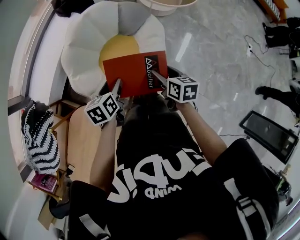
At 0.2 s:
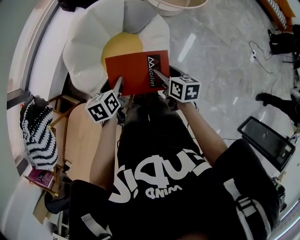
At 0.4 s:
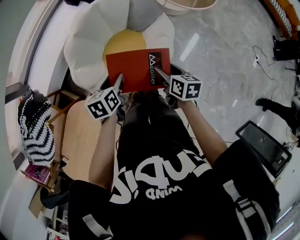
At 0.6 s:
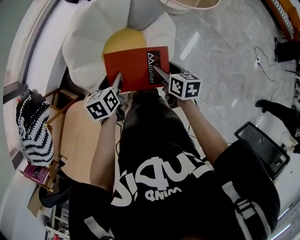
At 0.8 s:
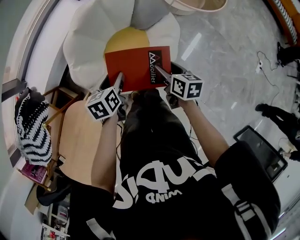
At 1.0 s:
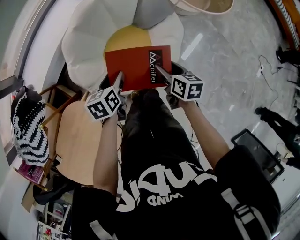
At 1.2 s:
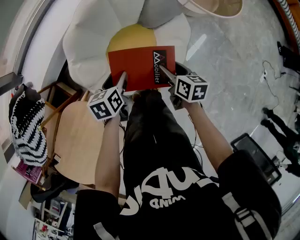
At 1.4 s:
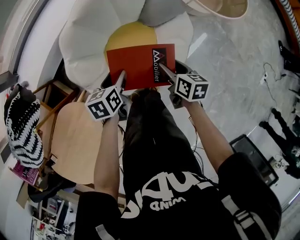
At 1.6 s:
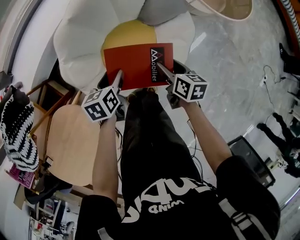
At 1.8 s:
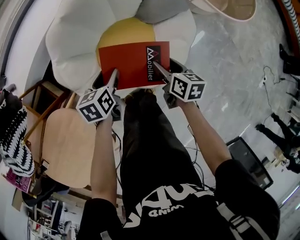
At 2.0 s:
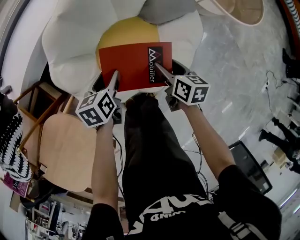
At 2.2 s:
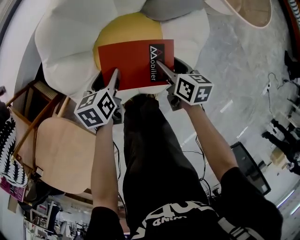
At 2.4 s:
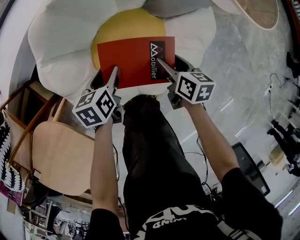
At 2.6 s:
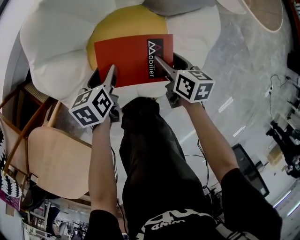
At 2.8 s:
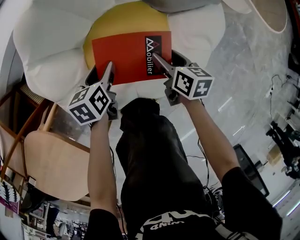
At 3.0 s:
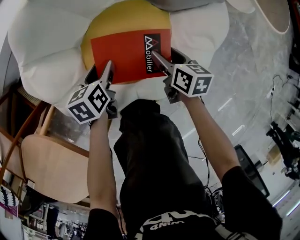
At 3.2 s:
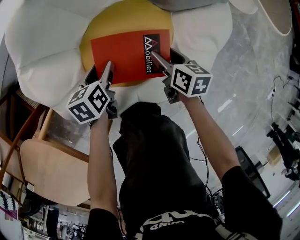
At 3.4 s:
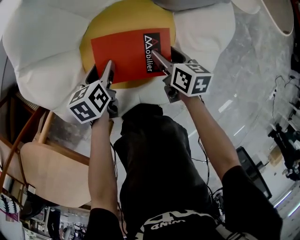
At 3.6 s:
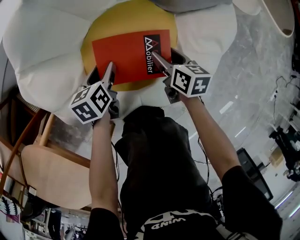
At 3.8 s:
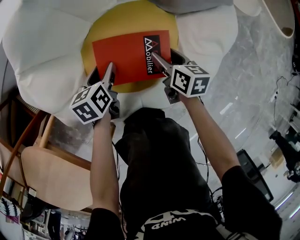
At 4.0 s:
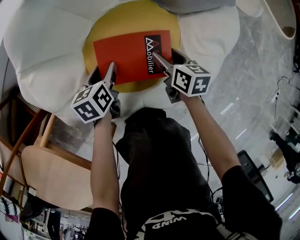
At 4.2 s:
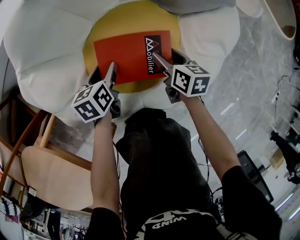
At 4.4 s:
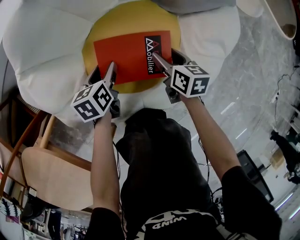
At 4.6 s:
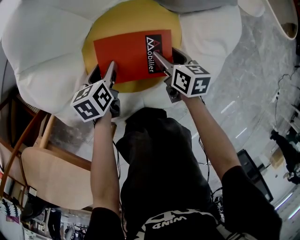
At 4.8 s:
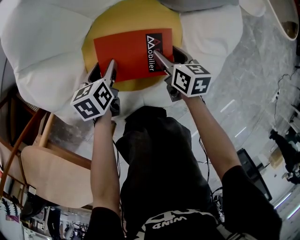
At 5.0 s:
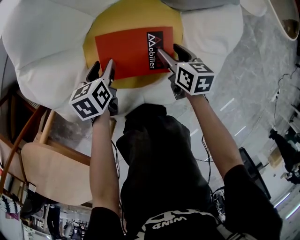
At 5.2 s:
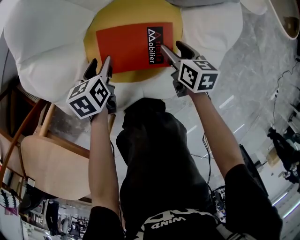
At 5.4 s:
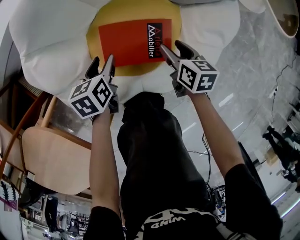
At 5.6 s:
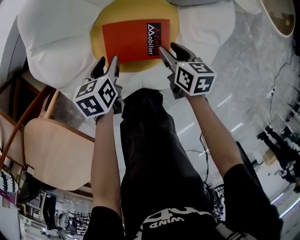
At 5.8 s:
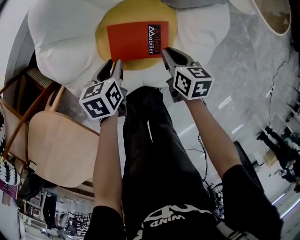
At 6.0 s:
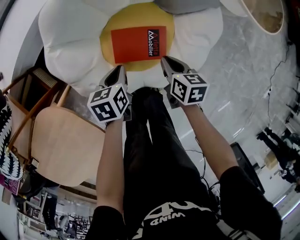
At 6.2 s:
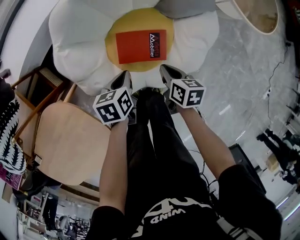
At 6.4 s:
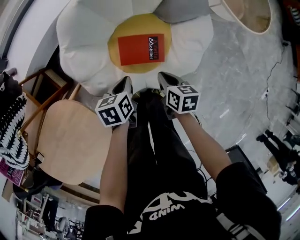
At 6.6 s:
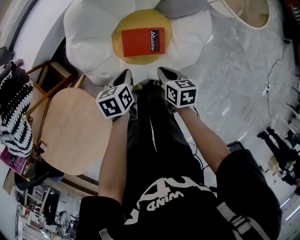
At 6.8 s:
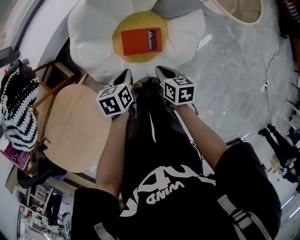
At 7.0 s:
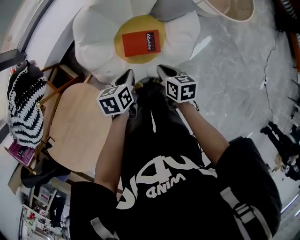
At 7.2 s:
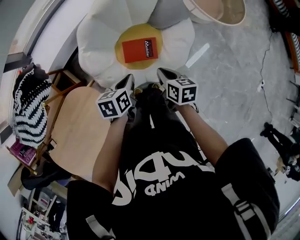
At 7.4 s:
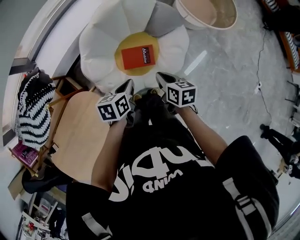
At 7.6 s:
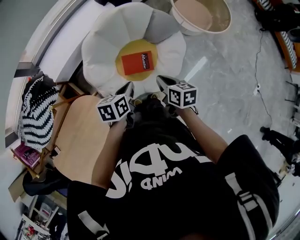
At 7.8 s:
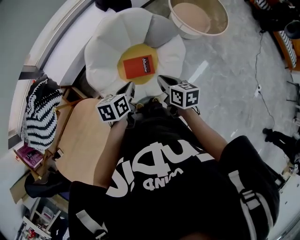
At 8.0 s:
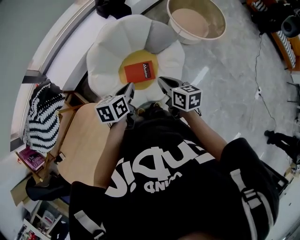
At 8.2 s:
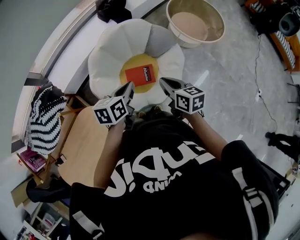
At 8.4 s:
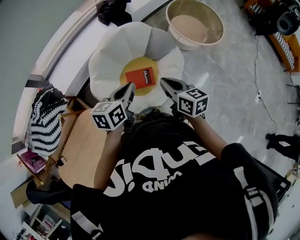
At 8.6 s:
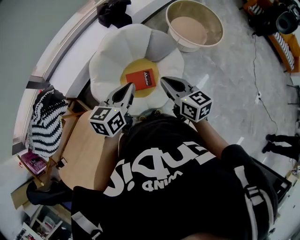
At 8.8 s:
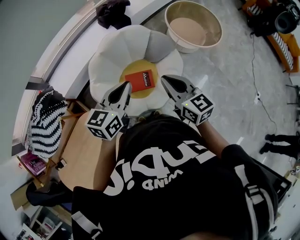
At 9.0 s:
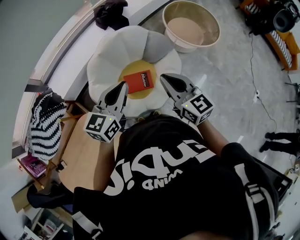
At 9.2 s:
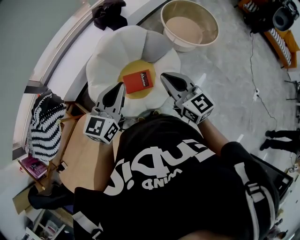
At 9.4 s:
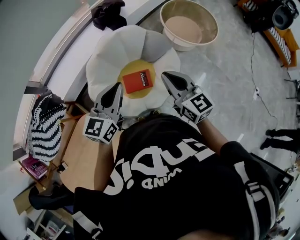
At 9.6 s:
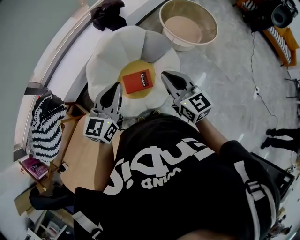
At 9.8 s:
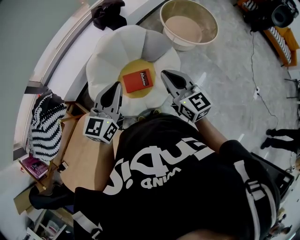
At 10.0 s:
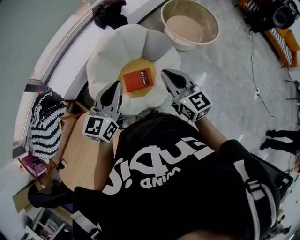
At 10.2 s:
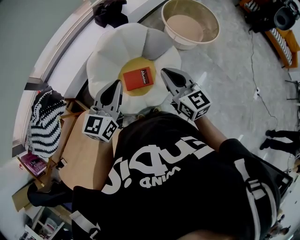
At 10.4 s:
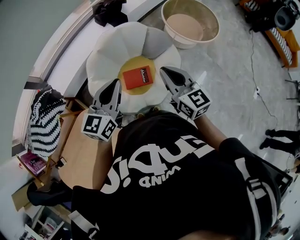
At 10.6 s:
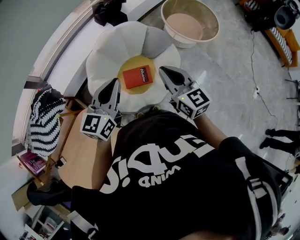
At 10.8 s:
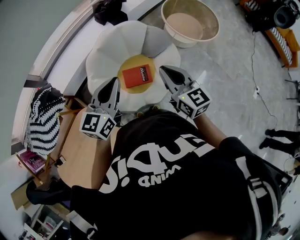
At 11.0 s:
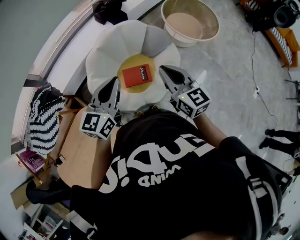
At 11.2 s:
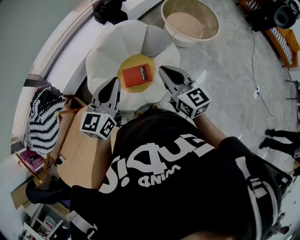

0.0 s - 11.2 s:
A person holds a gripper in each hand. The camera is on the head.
0.0 s - 1.6 s: The grippers both shift downward and forward by about 25 cm.
1.6 s - 3.2 s: The two grippers go some 30 cm downward.
3.2 s - 4.8 s: The grippers stay close to where they were, moving slightly.
4.8 s - 6.4 s: The left gripper travels upward by about 25 cm, and closes up; the right gripper shifts roughly 25 cm upward and backward, and closes its fingers.
6.4 s - 8.0 s: Both grippers travel together upward, about 35 cm. The right gripper turns by approximately 20 degrees. The left gripper rotates some 20 degrees.
8.0 s - 9.6 s: The grippers both shift upward by about 15 cm. The right gripper rotates some 30 degrees. The left gripper swivels about 40 degrees.
9.6 s - 11.2 s: The grippers move only a little.

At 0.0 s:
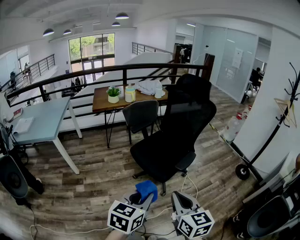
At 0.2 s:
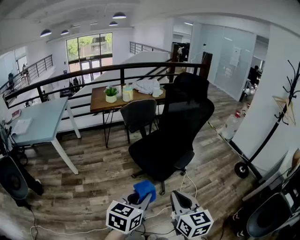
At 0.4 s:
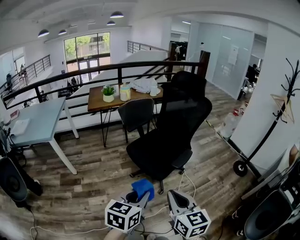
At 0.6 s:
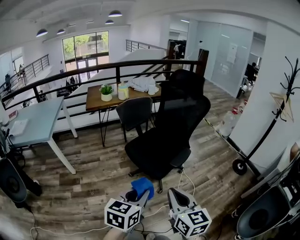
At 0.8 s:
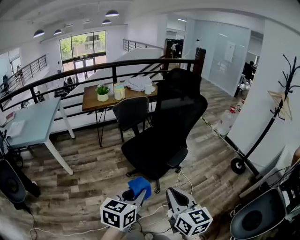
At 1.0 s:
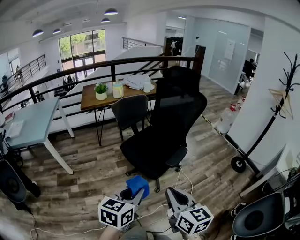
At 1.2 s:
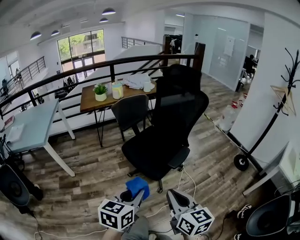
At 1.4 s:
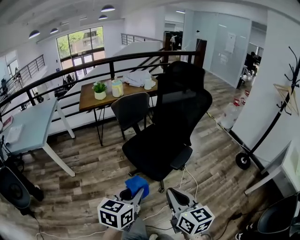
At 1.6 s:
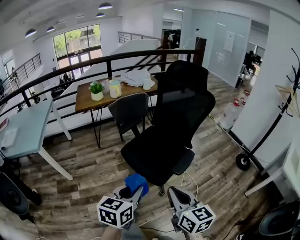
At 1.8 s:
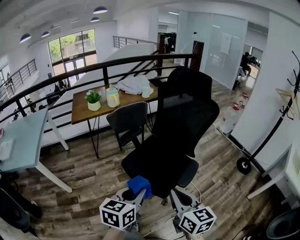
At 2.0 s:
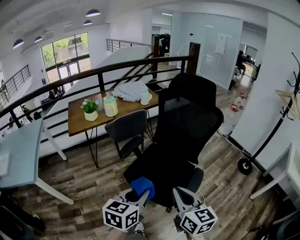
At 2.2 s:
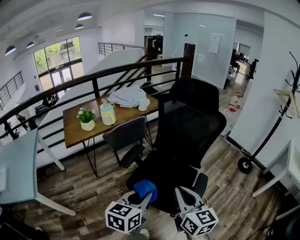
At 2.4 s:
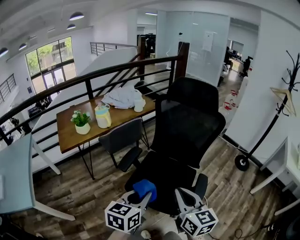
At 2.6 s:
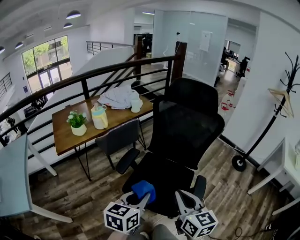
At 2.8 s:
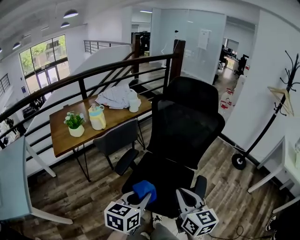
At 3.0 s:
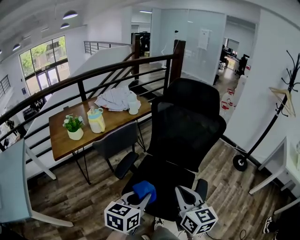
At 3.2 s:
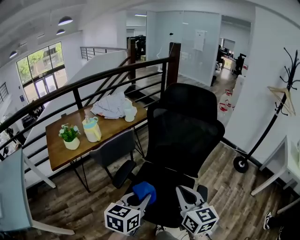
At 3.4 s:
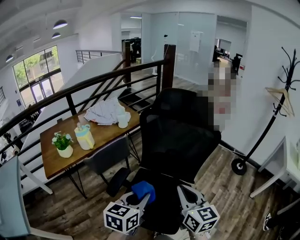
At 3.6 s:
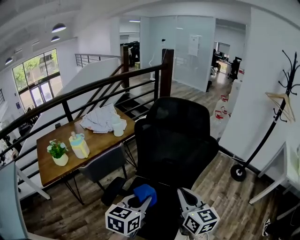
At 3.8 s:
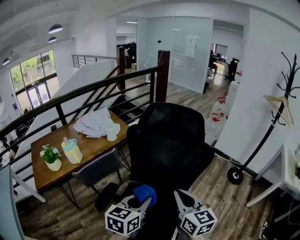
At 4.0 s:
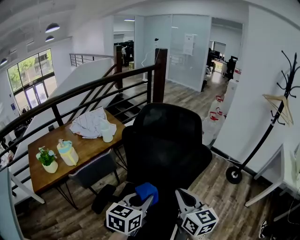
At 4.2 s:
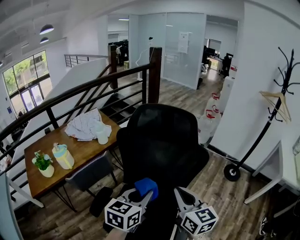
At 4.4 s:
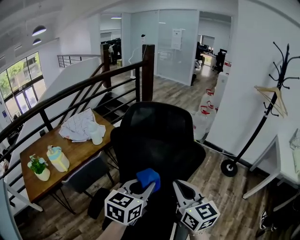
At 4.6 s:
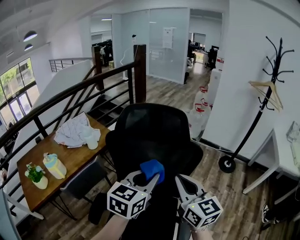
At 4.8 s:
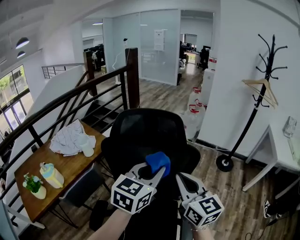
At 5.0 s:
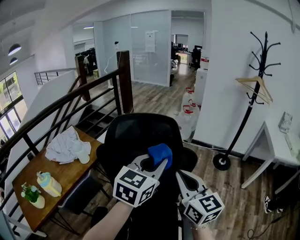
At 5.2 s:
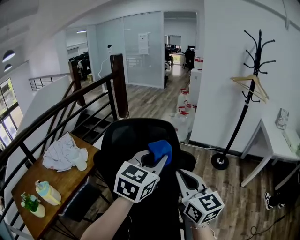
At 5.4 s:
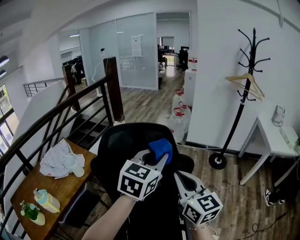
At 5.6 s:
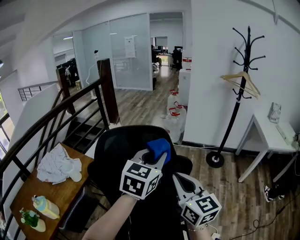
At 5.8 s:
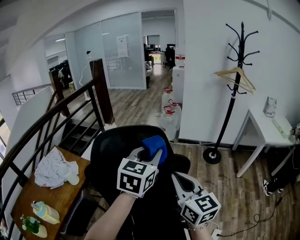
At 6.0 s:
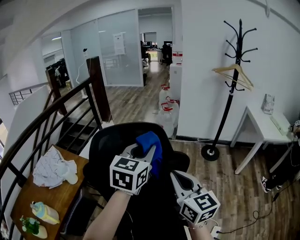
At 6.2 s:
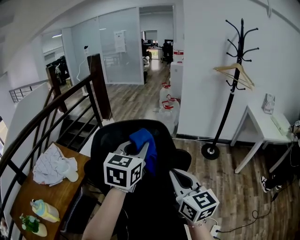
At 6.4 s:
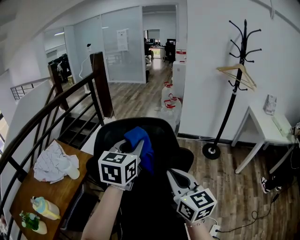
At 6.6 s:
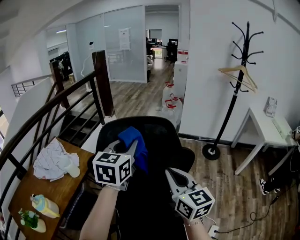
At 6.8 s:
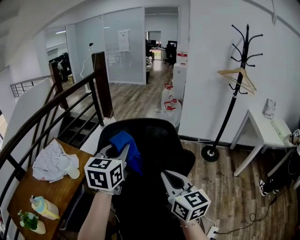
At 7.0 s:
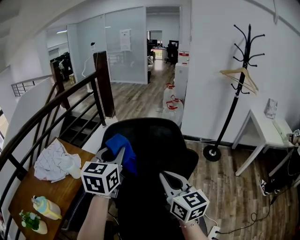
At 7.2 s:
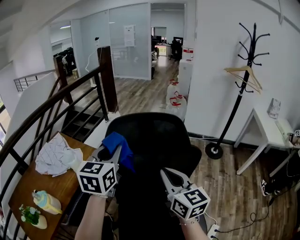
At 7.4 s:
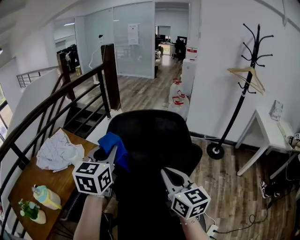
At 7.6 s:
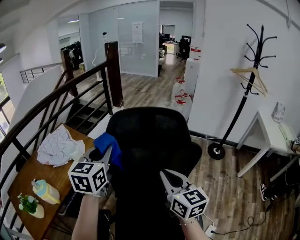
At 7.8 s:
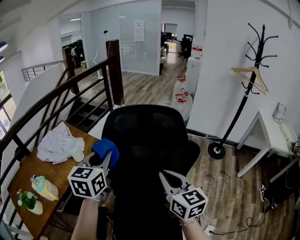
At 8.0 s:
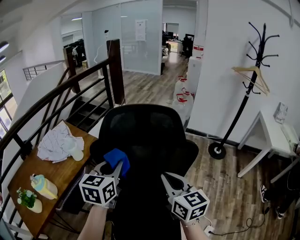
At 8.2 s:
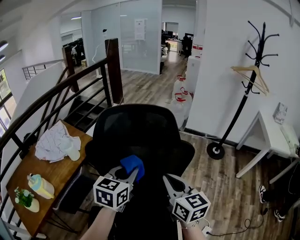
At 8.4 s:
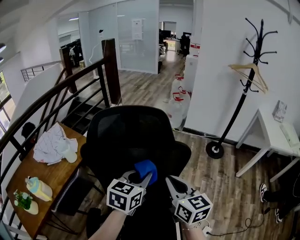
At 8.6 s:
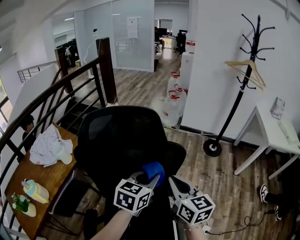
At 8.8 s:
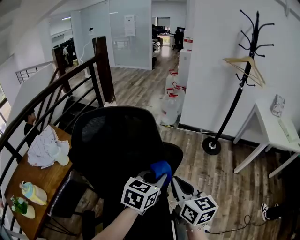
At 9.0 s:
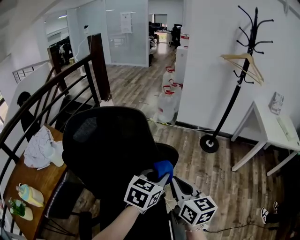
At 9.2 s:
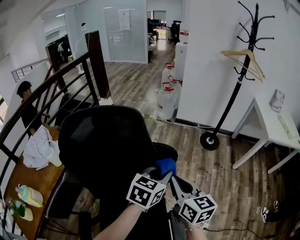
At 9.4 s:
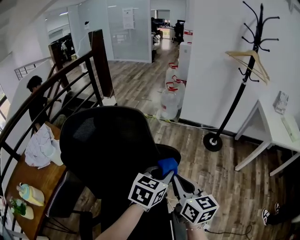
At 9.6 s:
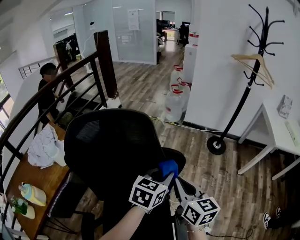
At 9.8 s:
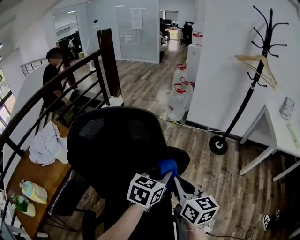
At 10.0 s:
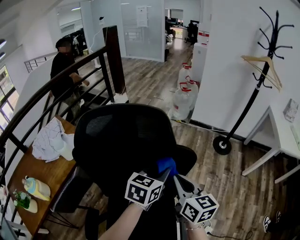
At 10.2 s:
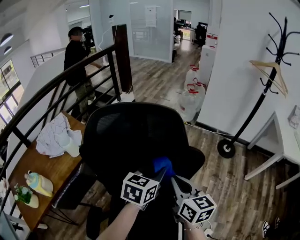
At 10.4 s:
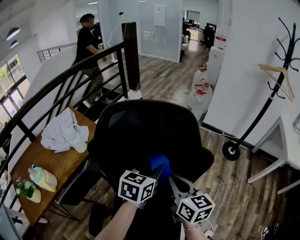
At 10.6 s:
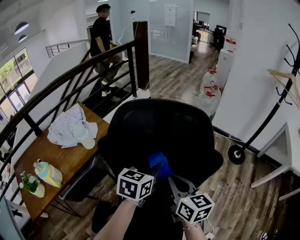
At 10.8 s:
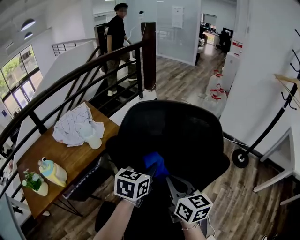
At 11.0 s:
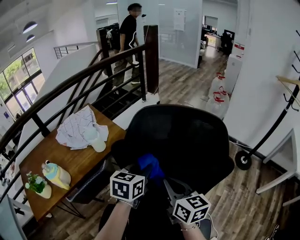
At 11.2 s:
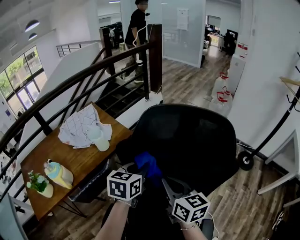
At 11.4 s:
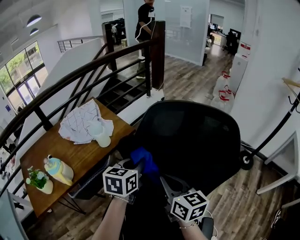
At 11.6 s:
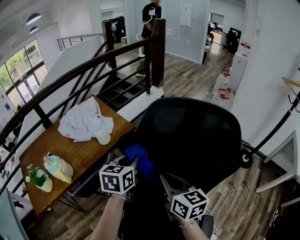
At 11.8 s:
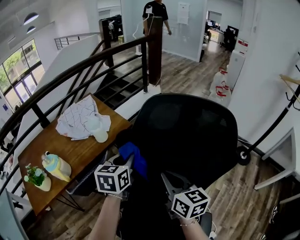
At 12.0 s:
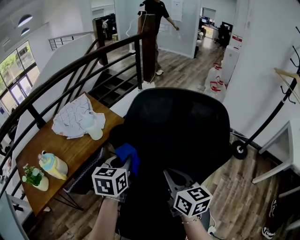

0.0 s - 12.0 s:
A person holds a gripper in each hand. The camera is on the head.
0.0 s - 1.6 s: The grippers both shift forward by approximately 15 cm.
1.6 s - 3.0 s: The two grippers go about 30 cm forward and to the left. The right gripper changes its angle by about 20 degrees.
3.0 s - 4.4 s: Both grippers move forward and to the right, about 30 cm.
4.4 s - 6.0 s: The left gripper heads forward and upward, covering approximately 25 cm, and rotates about 20 degrees, while the right gripper goes roughly 10 cm forward, and rotates about 20 degrees.
6.0 s - 7.6 s: The left gripper is displaced to the left by roughly 25 cm, and changes its angle by about 20 degrees. The right gripper is displaced to the left by some 10 cm.
7.6 s - 9.0 s: The left gripper goes about 35 cm to the right and downward, and changes its angle by some 40 degrees. The right gripper goes some 20 cm to the right and downward.
9.0 s - 10.4 s: Both grippers travel together to the left, some 15 cm.
10.4 s - 12.0 s: The right gripper shifts about 10 cm to the left, while the left gripper moves to the left, about 20 cm, and rotates roughly 20 degrees.
